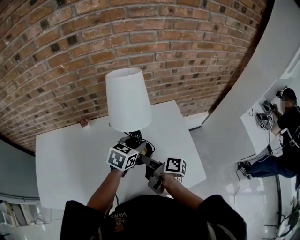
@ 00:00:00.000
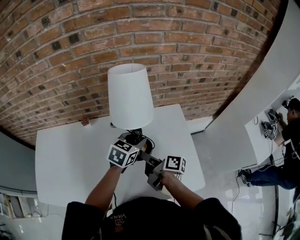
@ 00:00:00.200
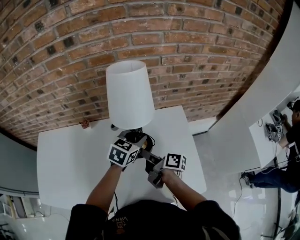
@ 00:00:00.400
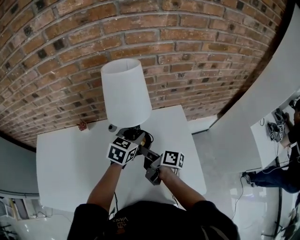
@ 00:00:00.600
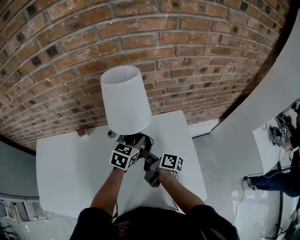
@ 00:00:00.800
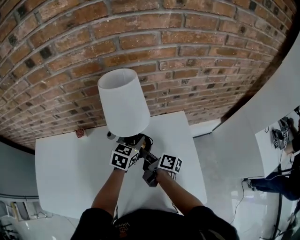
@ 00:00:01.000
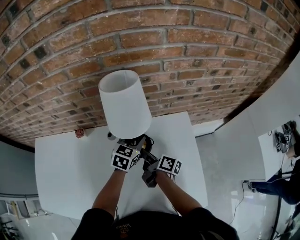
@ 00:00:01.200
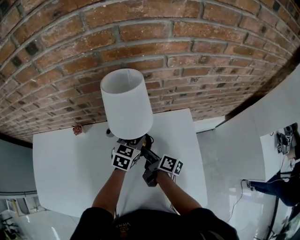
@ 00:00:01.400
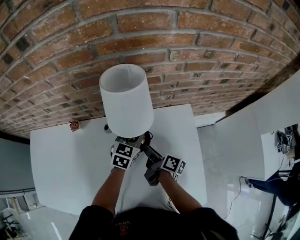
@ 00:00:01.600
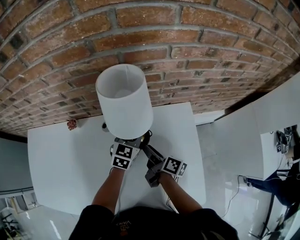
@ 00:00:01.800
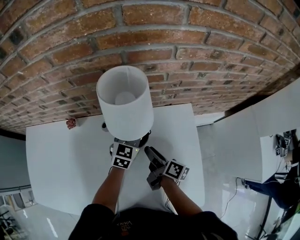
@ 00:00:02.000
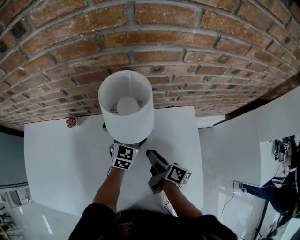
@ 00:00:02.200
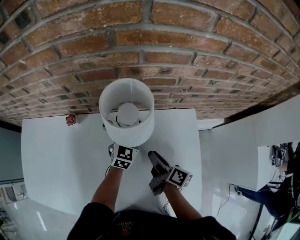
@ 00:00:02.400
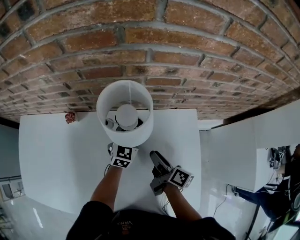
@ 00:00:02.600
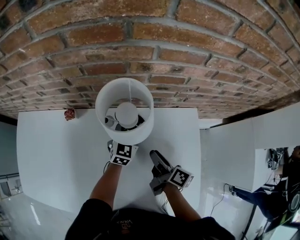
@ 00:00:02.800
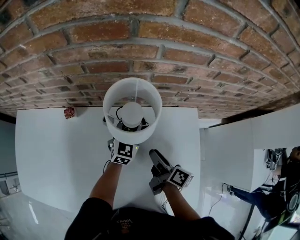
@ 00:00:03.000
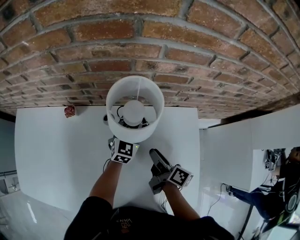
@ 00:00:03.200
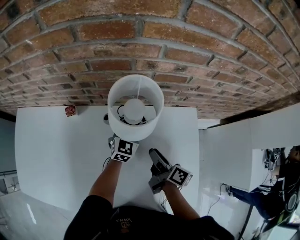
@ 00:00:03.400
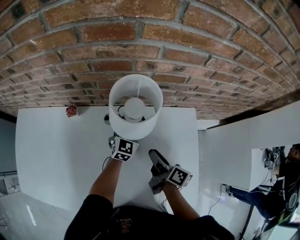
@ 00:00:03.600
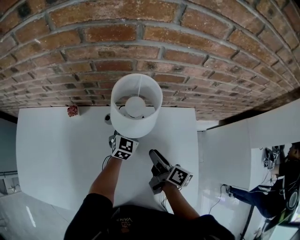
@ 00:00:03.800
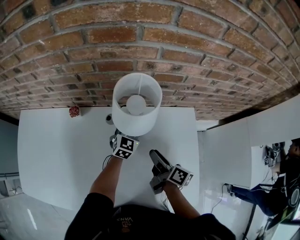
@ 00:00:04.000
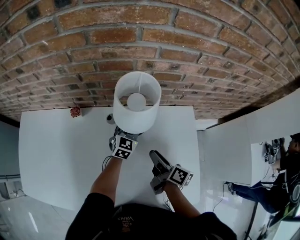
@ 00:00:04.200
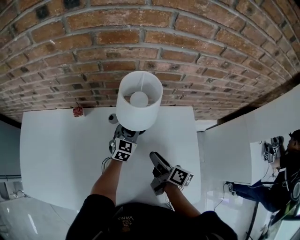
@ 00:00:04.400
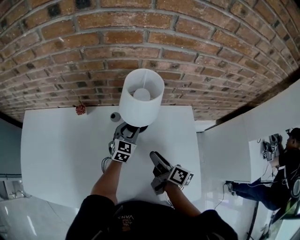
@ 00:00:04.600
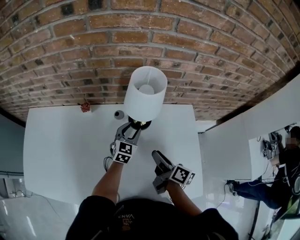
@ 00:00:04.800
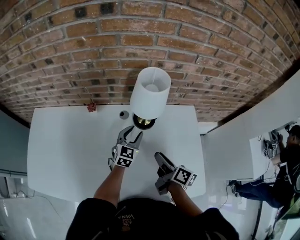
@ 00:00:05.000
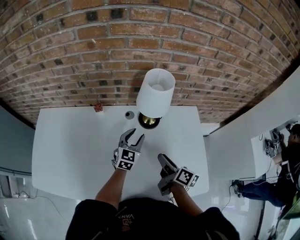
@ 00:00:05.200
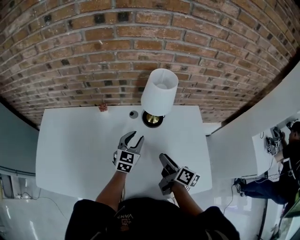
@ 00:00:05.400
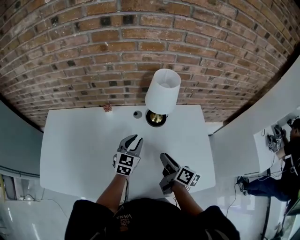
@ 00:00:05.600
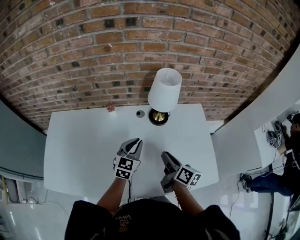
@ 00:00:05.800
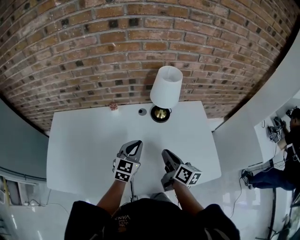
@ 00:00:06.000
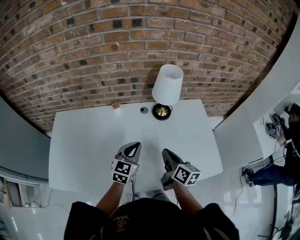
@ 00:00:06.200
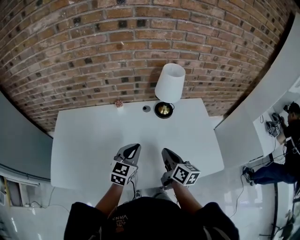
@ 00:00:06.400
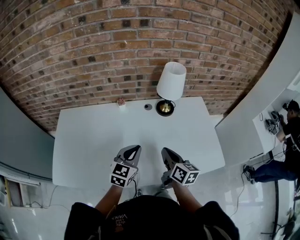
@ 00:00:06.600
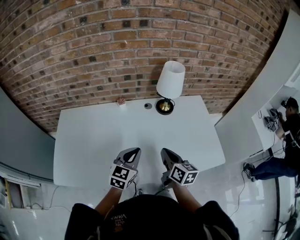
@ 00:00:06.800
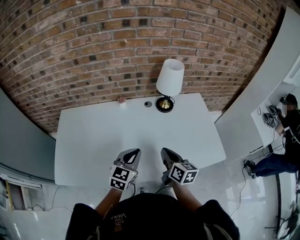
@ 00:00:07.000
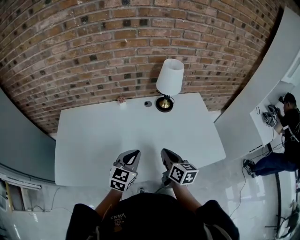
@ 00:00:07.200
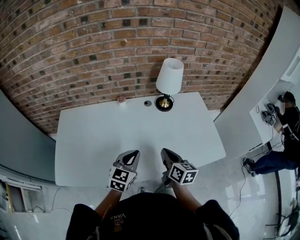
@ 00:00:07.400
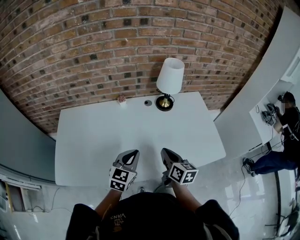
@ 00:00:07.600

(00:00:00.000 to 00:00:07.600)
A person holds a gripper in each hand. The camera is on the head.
00:00:00.000 - 00:00:01.600: Both grippers travel together forward and downward, about 20 cm.
00:00:01.600 - 00:00:03.000: The left gripper changes place by roughly 5 cm.
00:00:03.000 - 00:00:04.600: Both grippers move backward, about 5 cm.
00:00:04.600 - 00:00:06.000: The left gripper goes approximately 30 cm backward, to the left and upward, and closes up; the right gripper moves backward, to the left and upward, approximately 15 cm, and closes up.
00:00:06.000 - 00:00:07.600: Both grippers move backward and to the left, approximately 15 cm.

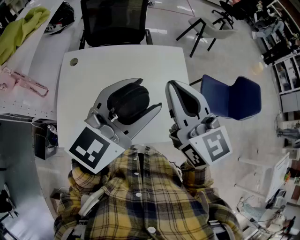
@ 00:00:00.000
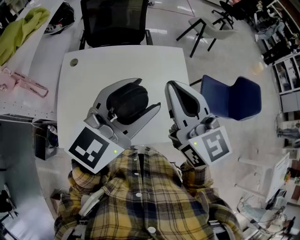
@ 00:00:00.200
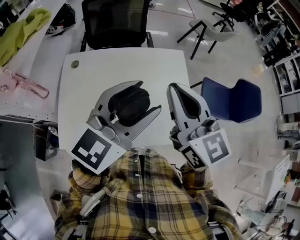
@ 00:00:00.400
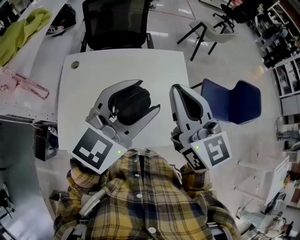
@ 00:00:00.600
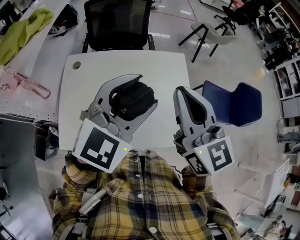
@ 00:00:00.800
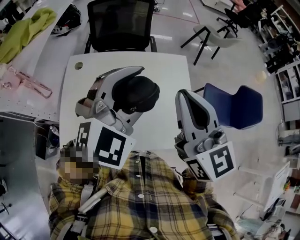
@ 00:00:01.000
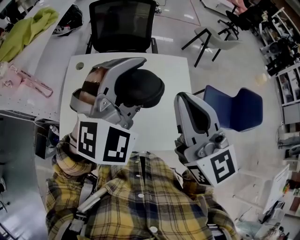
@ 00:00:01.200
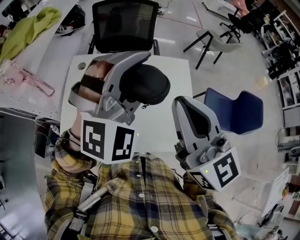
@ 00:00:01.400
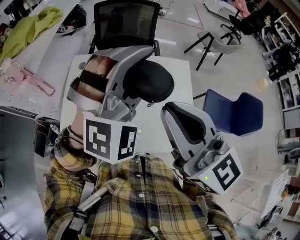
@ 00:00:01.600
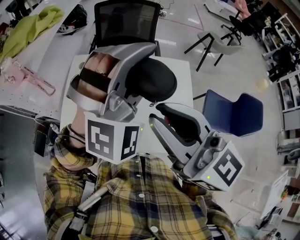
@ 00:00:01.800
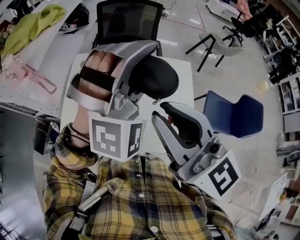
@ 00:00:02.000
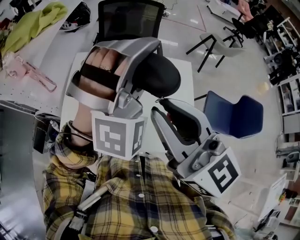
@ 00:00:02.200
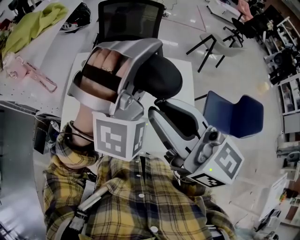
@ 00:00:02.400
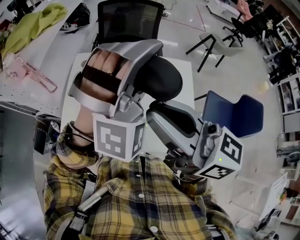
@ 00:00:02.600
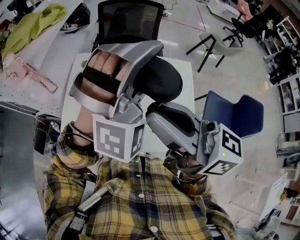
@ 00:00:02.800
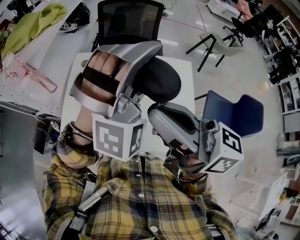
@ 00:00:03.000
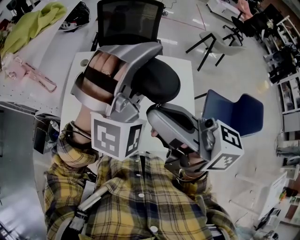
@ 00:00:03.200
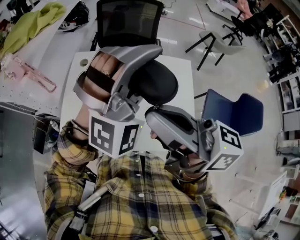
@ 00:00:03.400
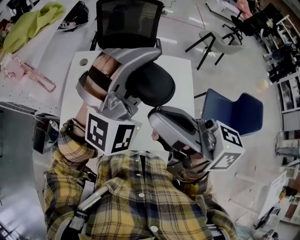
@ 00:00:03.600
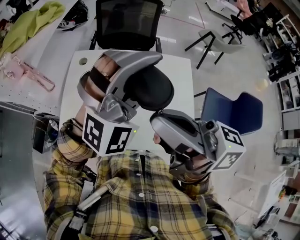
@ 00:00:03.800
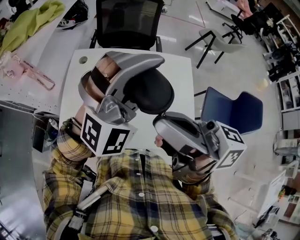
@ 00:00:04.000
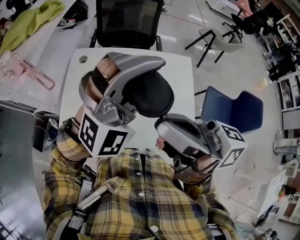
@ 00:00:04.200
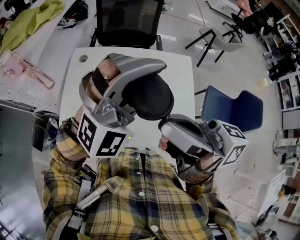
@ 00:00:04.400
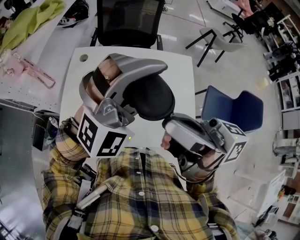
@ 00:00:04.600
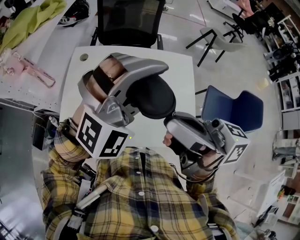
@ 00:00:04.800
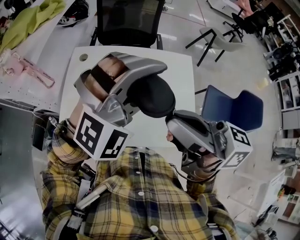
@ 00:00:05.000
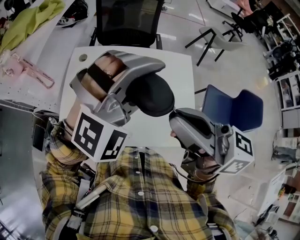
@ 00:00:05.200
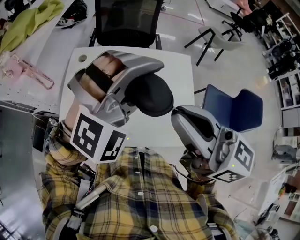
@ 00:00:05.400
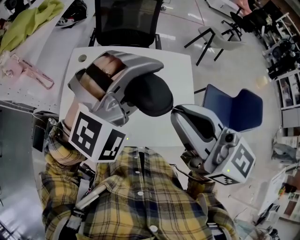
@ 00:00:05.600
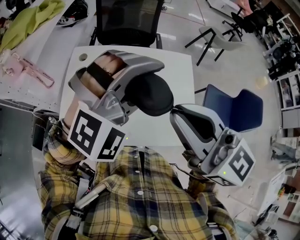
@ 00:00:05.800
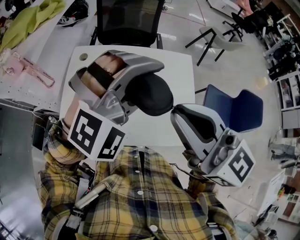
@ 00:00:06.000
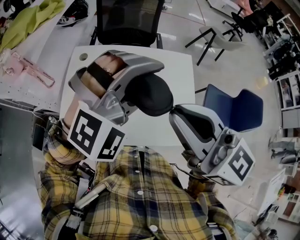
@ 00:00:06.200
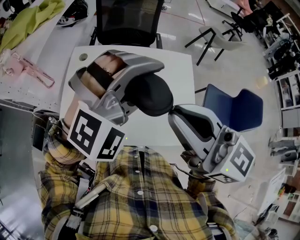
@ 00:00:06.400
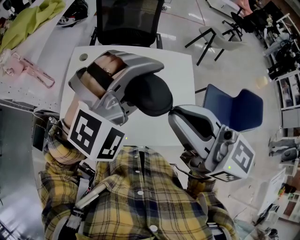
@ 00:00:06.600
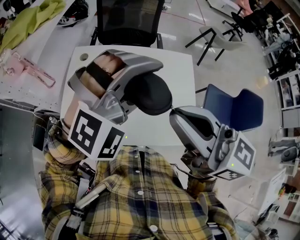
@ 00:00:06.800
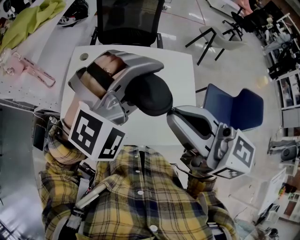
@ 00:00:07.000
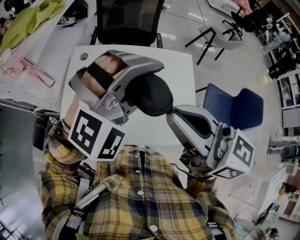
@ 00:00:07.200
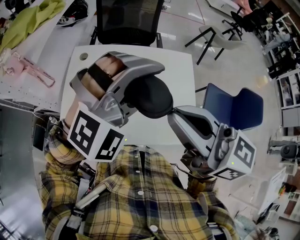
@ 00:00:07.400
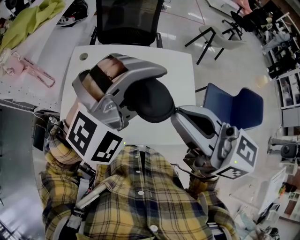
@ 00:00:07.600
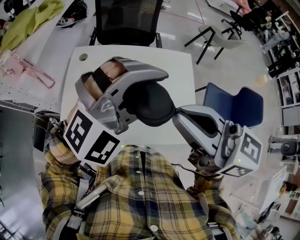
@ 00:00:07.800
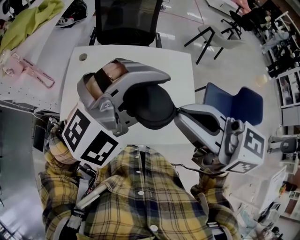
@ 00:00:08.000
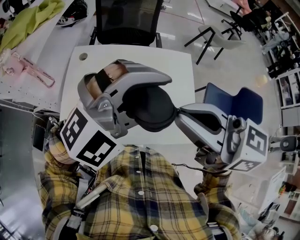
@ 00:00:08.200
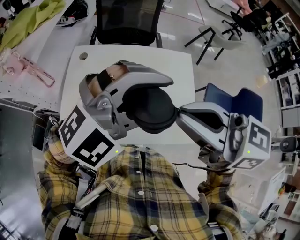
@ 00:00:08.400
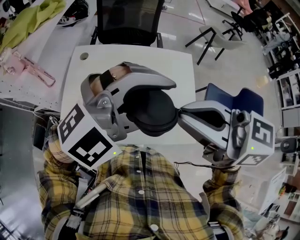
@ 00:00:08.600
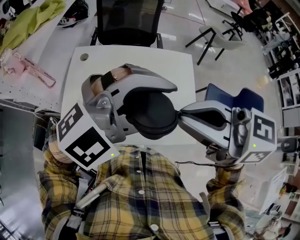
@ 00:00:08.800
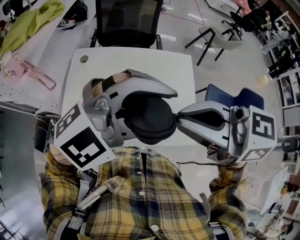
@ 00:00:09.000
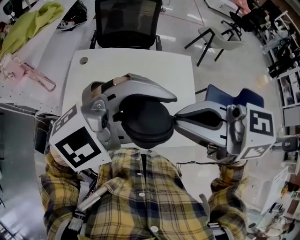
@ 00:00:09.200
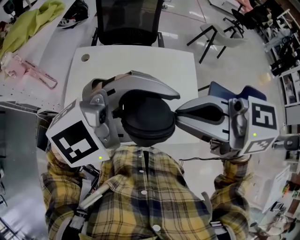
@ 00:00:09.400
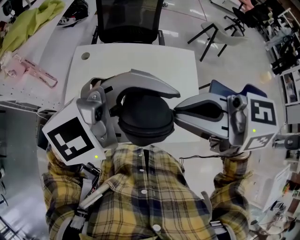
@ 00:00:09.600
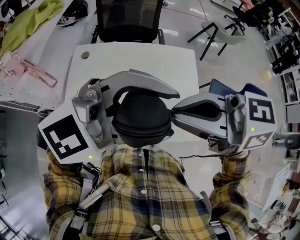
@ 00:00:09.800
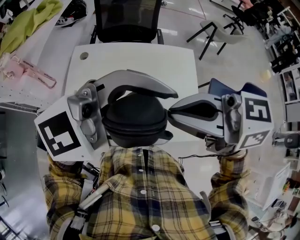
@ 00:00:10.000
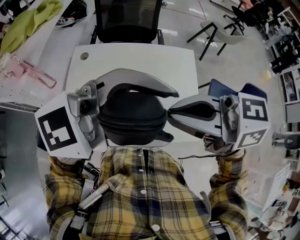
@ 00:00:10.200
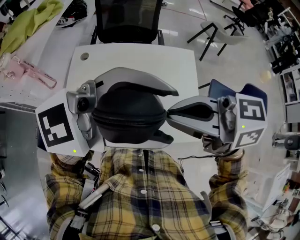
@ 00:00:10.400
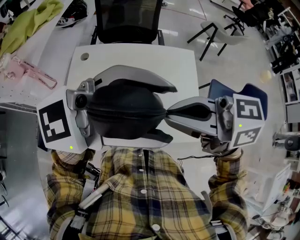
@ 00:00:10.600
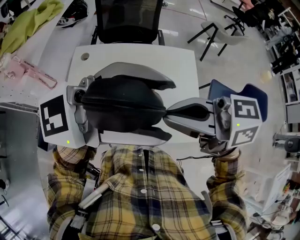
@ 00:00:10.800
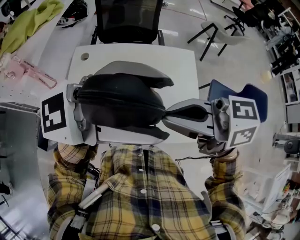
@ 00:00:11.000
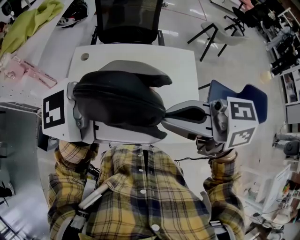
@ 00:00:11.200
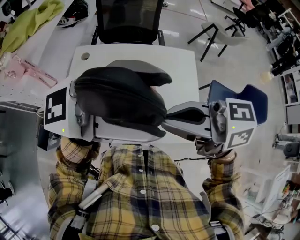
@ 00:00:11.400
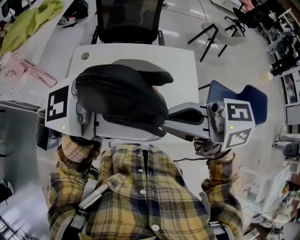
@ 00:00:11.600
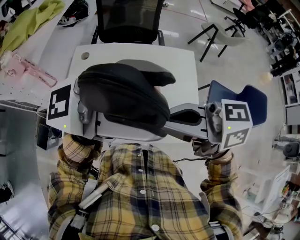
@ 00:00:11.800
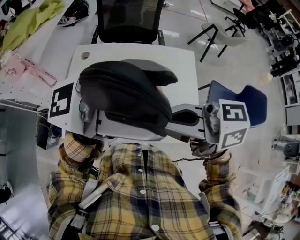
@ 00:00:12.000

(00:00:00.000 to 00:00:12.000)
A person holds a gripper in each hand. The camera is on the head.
00:00:00.000 - 00:00:01.600: The left gripper is displaced forward by some 5 cm, and rotates around the line of its fingers by roughly 70 degrees, clockwise from behind. The right gripper shifts roughly 10 cm upward and backward.
00:00:01.600 - 00:00:03.000: The right gripper turns by roughly 40 degrees.
00:00:03.000 - 00:00:04.400: The left gripper heads backward, covering approximately 5 cm, and swivels some 30 degrees. The right gripper rotates approximately 20 degrees.
00:00:04.400 - 00:00:06.000: The right gripper rotates around the line of its fingers by approximately 50 degrees, counterclockwise from behind.
00:00:06.000 - 00:00:07.600: The grippers move only a little.
00:00:07.600 - 00:00:09.000: The right gripper turns by about 20 degrees; the left gripper ends up some 5 cm from where it was, and swivels approximately 30 degrees.
00:00:09.000 - 00:00:10.400: The left gripper heads upward, covering some 5 cm, and turns by roughly 30 degrees.
00:00:10.400 - 00:00:12.000: The left gripper swivels about 30 degrees.

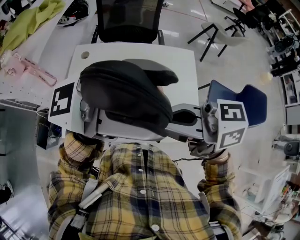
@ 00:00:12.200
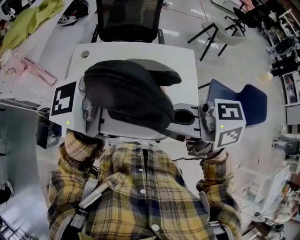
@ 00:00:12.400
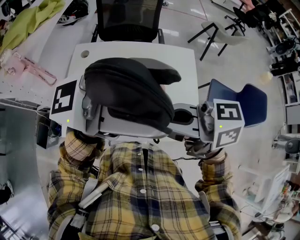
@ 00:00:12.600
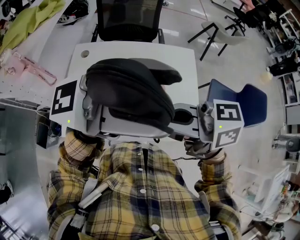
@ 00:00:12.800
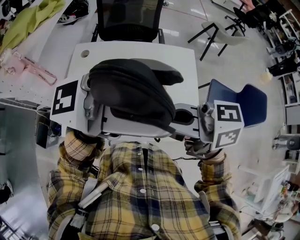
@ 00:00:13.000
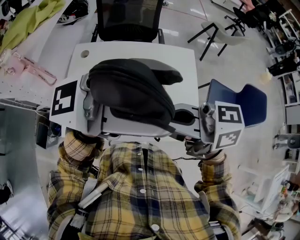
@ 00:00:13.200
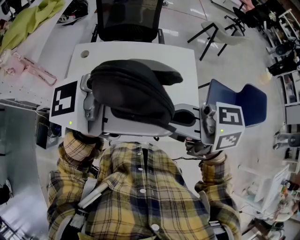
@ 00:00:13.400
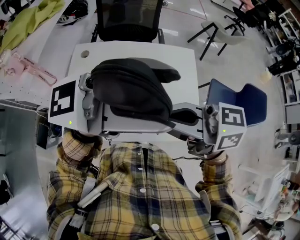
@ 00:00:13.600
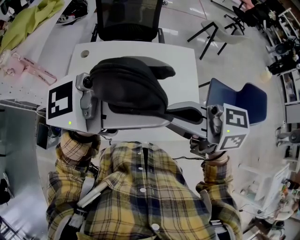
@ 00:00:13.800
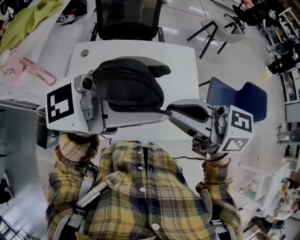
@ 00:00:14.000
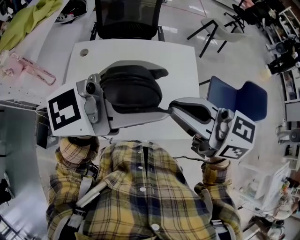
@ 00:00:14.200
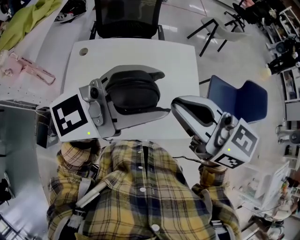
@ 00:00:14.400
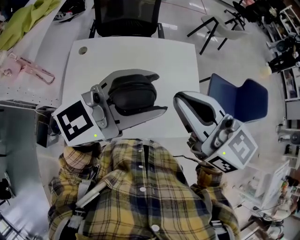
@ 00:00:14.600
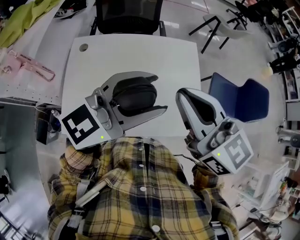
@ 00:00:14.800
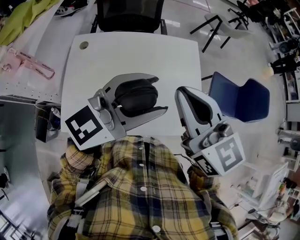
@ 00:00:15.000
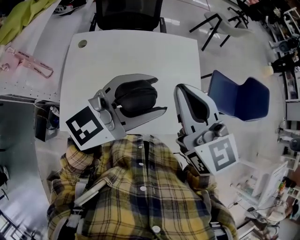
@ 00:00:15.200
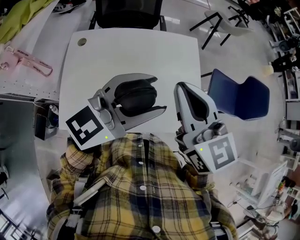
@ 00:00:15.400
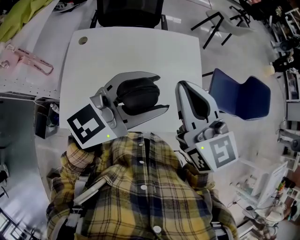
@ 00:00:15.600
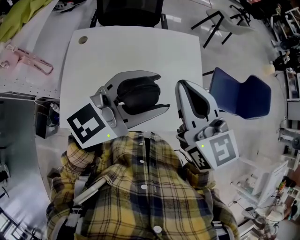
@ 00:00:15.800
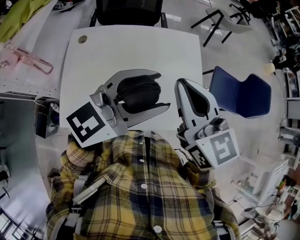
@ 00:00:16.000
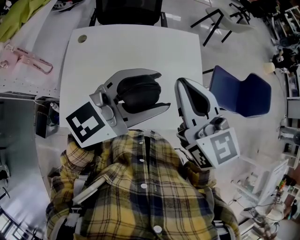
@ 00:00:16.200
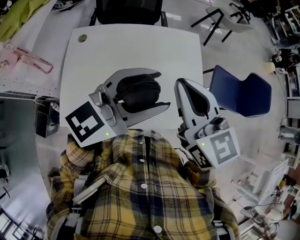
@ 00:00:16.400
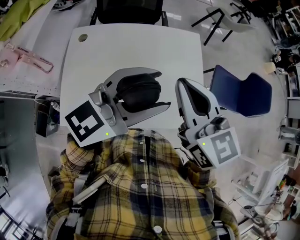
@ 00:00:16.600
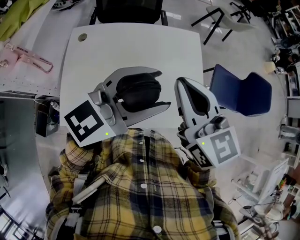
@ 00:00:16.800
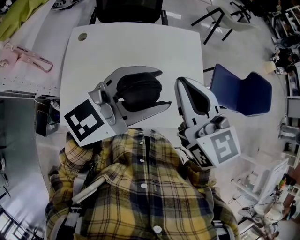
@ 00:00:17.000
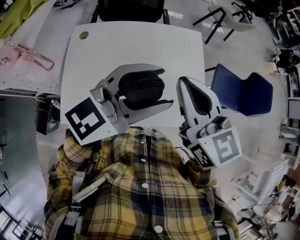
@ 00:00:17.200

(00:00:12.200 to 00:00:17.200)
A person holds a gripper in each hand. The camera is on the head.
00:00:12.200 - 00:00:13.800: There are only small adjustments of the grippers.
00:00:13.800 - 00:00:15.600: The left gripper moves downward, some 15 cm, and swivels approximately 30 degrees, while the right gripper moves about 5 cm, and rotates approximately 50 degrees.
00:00:15.600 - 00:00:17.200: Neither gripper changes place.
